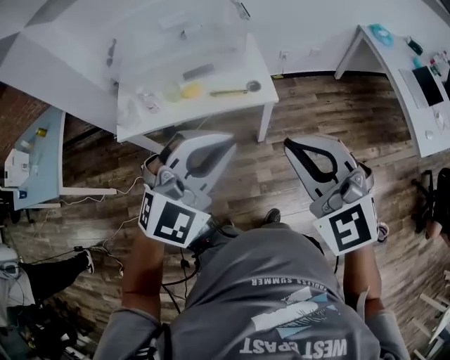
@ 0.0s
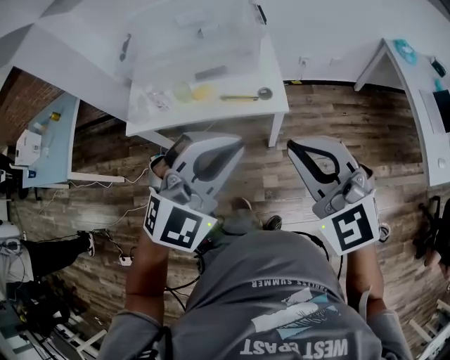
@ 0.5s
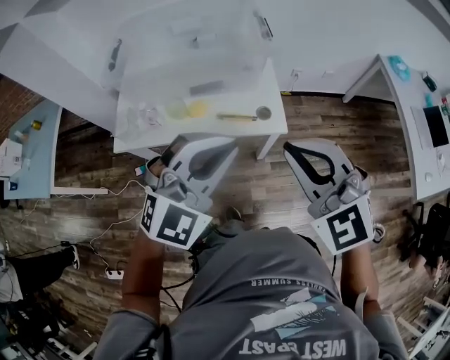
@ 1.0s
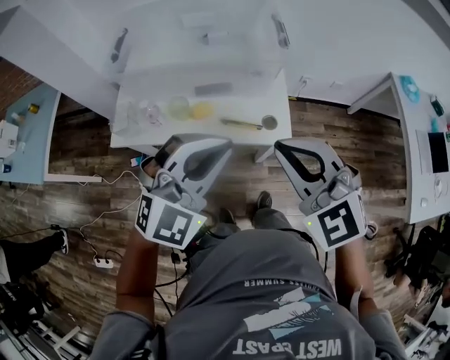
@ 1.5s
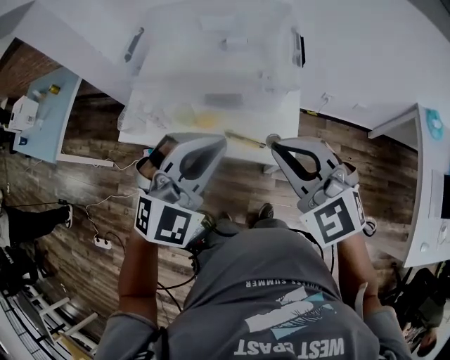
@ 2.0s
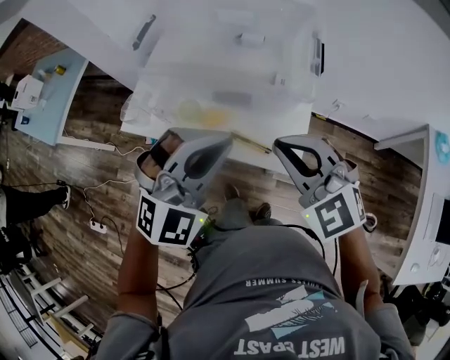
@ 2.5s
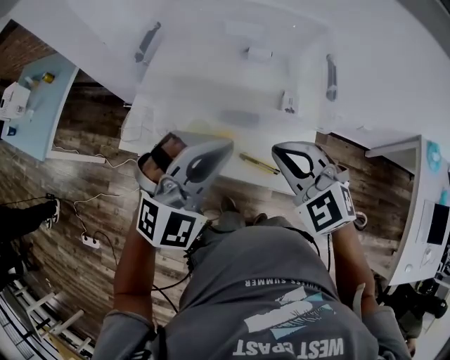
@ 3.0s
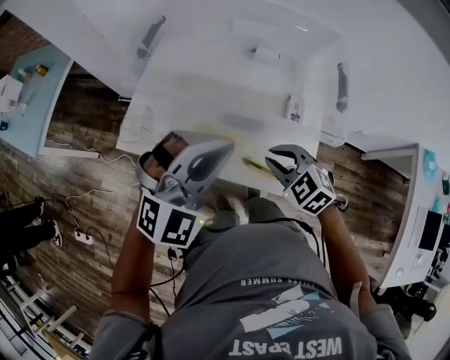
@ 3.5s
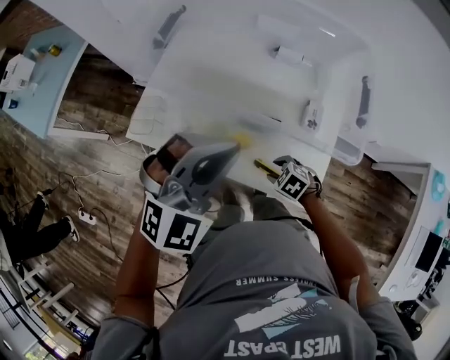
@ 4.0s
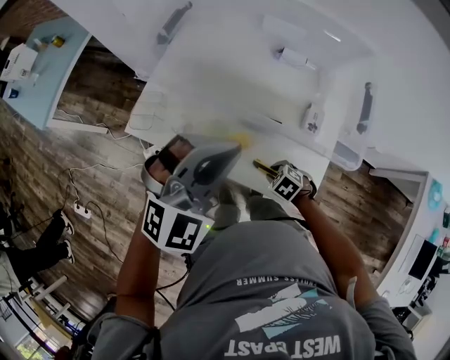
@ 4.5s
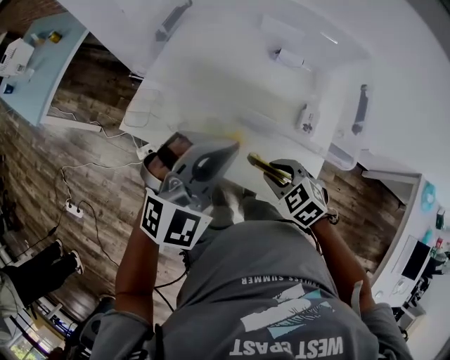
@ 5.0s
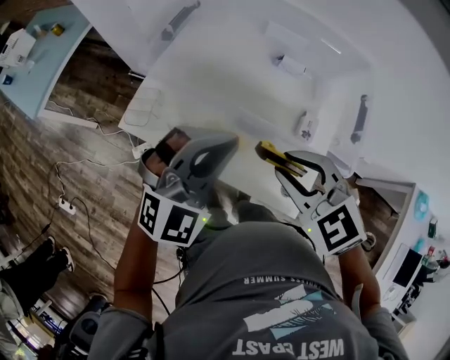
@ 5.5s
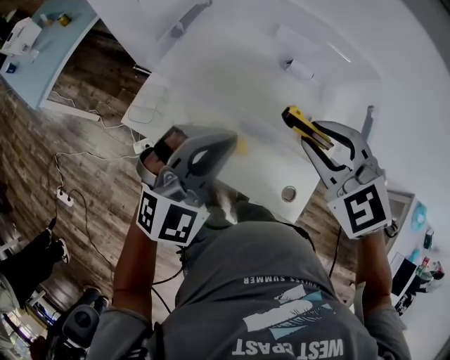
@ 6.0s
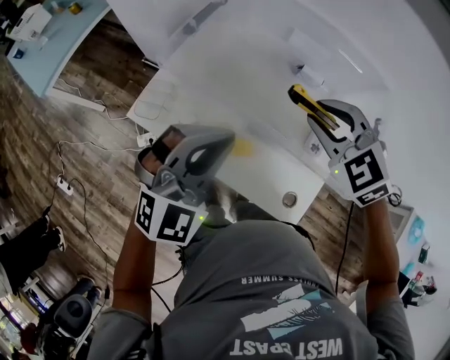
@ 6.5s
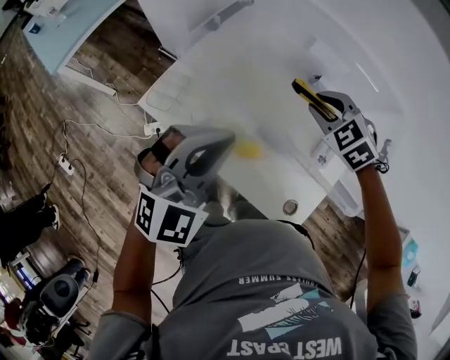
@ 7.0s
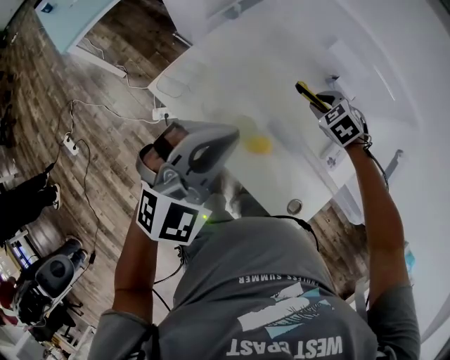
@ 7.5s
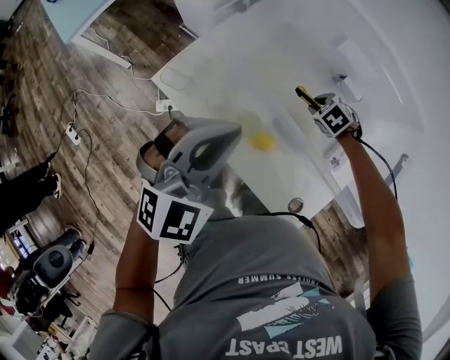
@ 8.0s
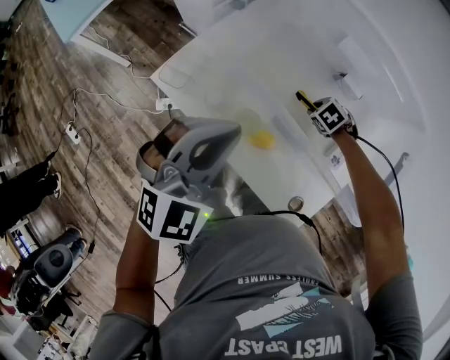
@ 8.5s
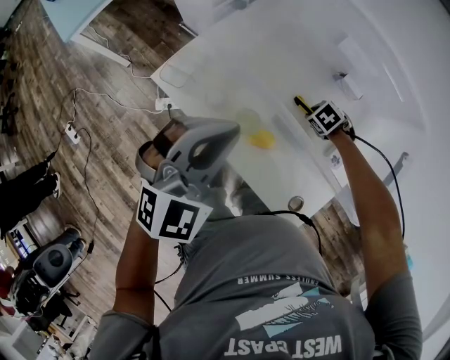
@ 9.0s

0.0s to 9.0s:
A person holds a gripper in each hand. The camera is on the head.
0.0s to 2.0s: The two grippers go approximately 25 cm forward. The right gripper changes its angle by roughly 20 degrees; the left gripper rotates about 30 degrees.
2.0s to 4.5s: The right gripper travels downward by about 40 cm, angles its fingers downward, by about 50 degrees, and opens up. Meanwhile the left gripper changes place by roughly 20 cm.
4.5s to 7.0s: The right gripper is displaced upward by approximately 25 cm, and rotates about 40 degrees. Meanwhile the left gripper shifts by about 10 cm.
7.0s to 9.0s: The right gripper heads downward, covering approximately 25 cm, and points its fingers roughly 30 degrees further downward.

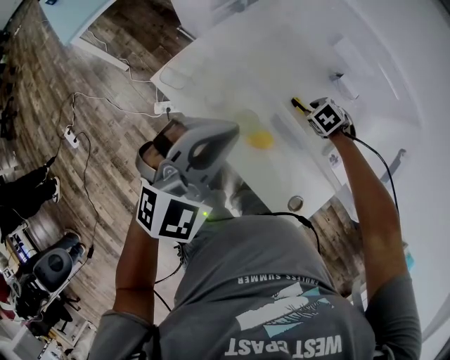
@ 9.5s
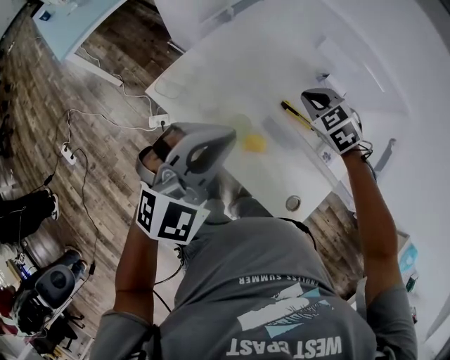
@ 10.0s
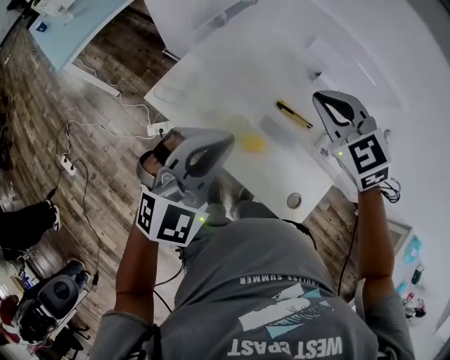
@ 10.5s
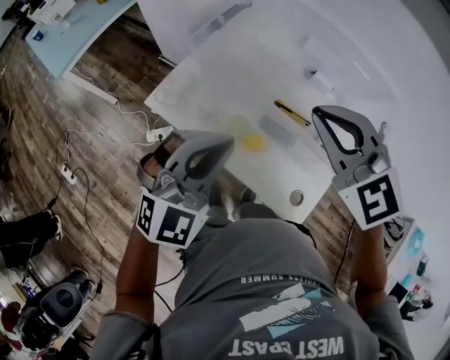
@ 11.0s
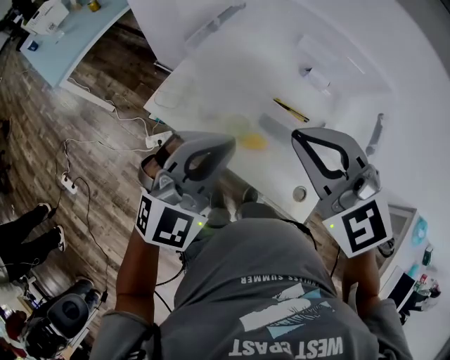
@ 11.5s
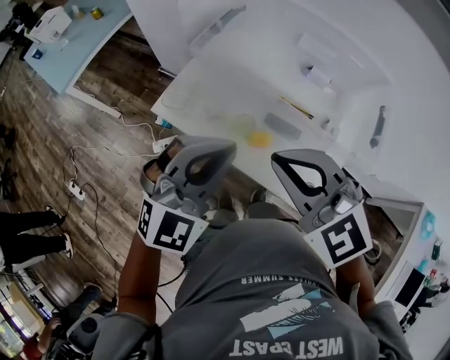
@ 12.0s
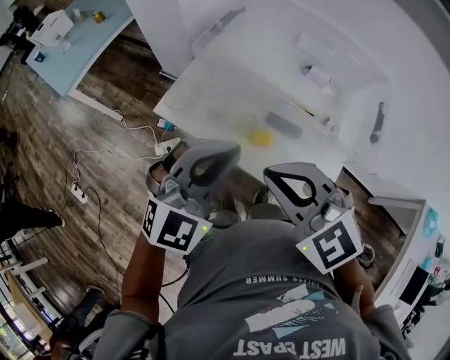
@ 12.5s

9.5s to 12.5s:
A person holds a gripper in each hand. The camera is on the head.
9.5s to 11.0s: The right gripper moves upward, some 40 cm, tips its fingers upward by approximately 50 degrees, and closes up; the left gripper moves roughly 5 cm.
11.0s to 12.5s: The right gripper moves backward and to the left, approximately 20 cm, while the left gripper is displaced backward by roughly 5 cm.

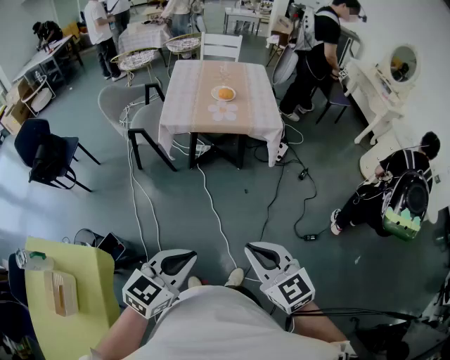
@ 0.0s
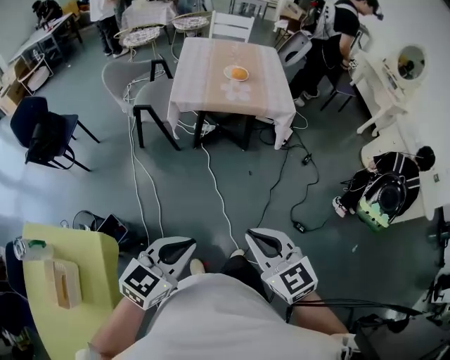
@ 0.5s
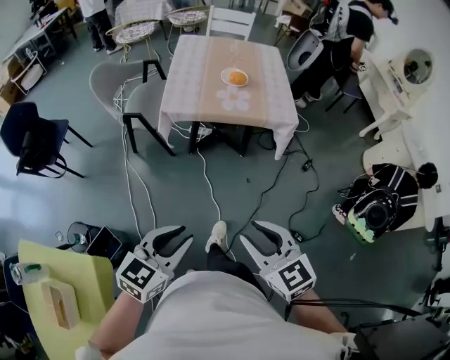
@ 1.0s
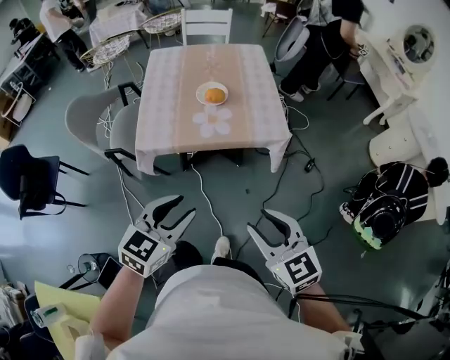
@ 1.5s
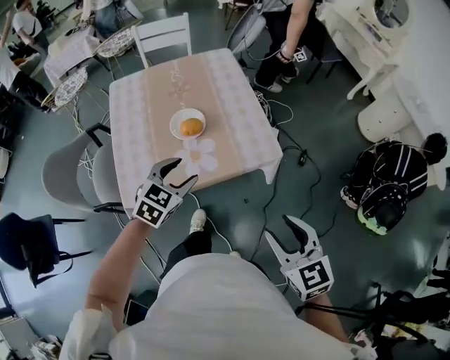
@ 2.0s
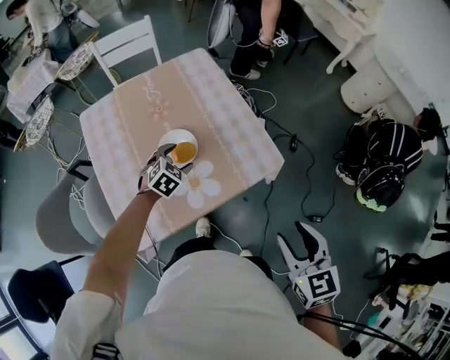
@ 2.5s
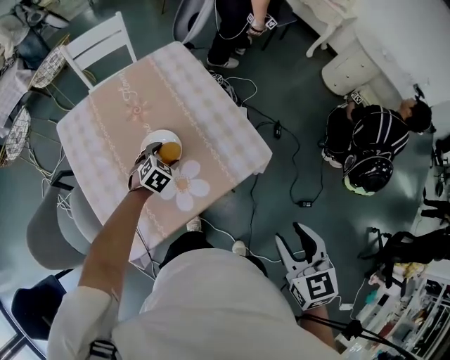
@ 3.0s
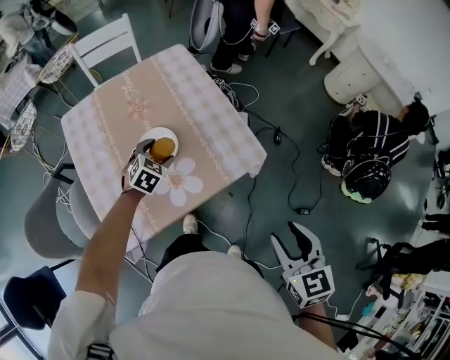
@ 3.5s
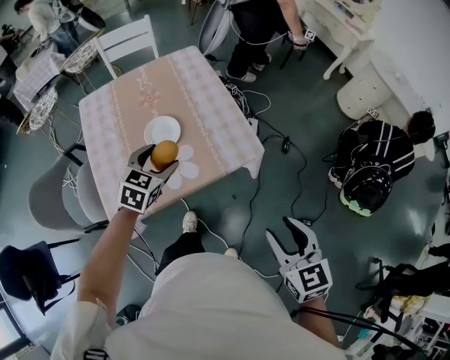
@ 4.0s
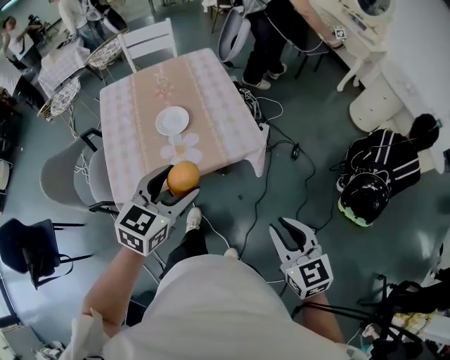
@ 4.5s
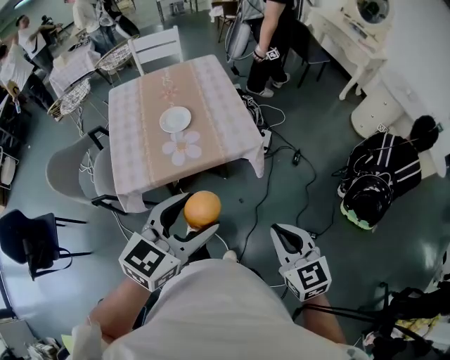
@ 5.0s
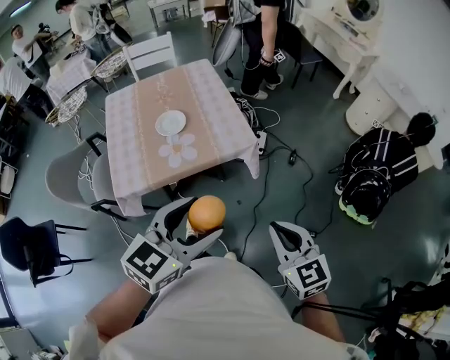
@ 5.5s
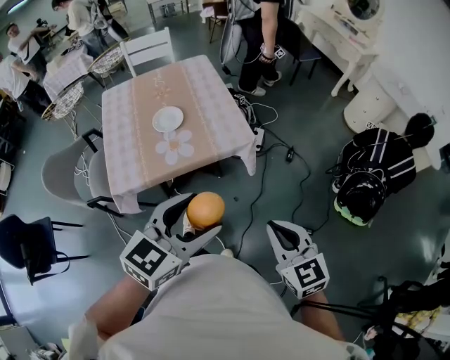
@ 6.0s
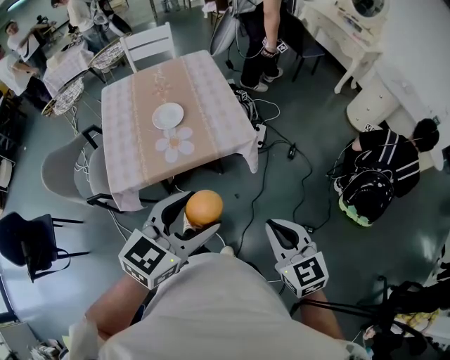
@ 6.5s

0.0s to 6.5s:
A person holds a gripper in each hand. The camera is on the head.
0.0s to 2.0s: Both grippers are carried forward, some 60 cm. The left gripper rotates some 30 degrees, and opens up. The right gripper rotates about 30 degrees, and opens up.
2.0s to 4.5s: The right gripper goes roughly 10 cm to the right, reaches about 10 cm forward, then returns, and closes its fingers, while the left gripper moves upward and to the right, some 15 cm, and travels forward and back again, about 20 cm each way.
4.5s to 6.5s: The left gripper goes some 15 cm backward and to the right; the right gripper moves roughly 5 cm, and closes up.

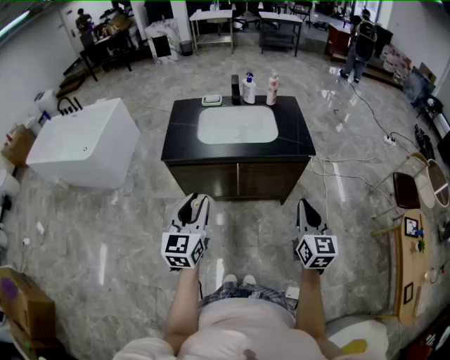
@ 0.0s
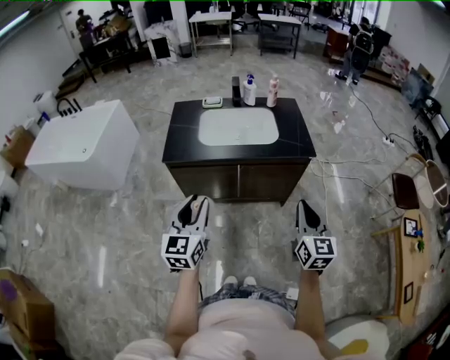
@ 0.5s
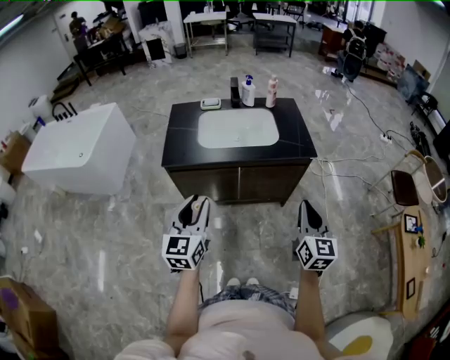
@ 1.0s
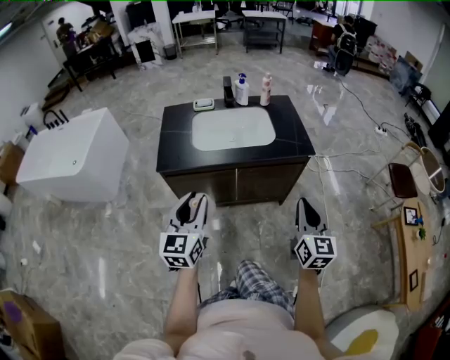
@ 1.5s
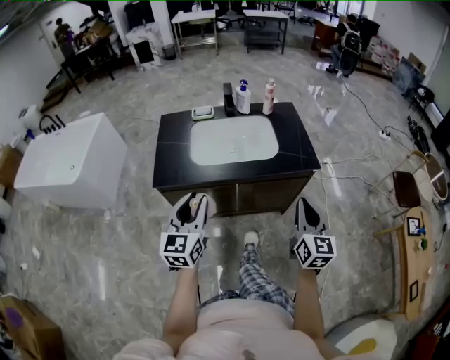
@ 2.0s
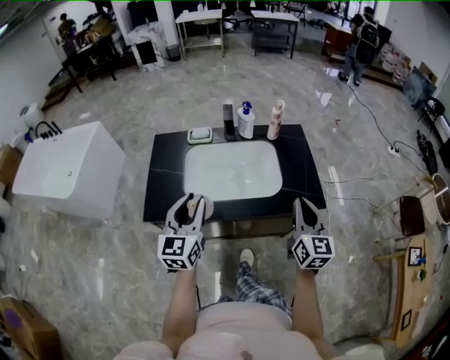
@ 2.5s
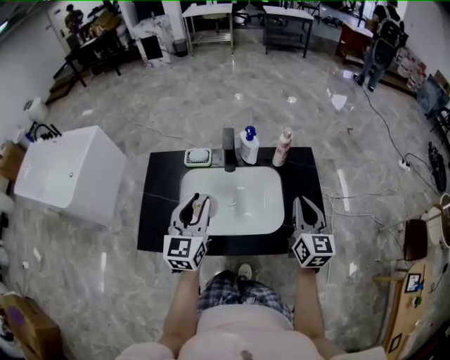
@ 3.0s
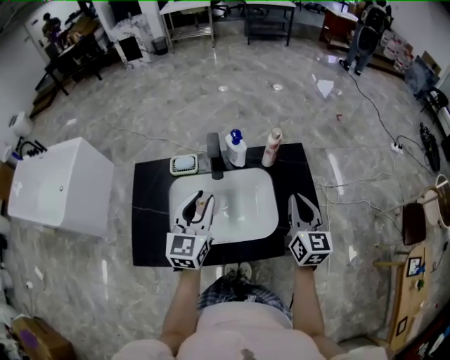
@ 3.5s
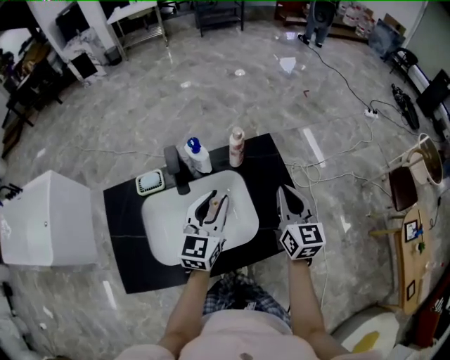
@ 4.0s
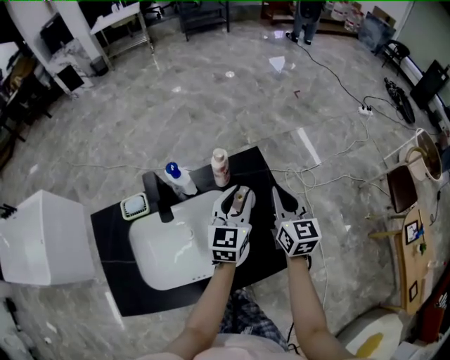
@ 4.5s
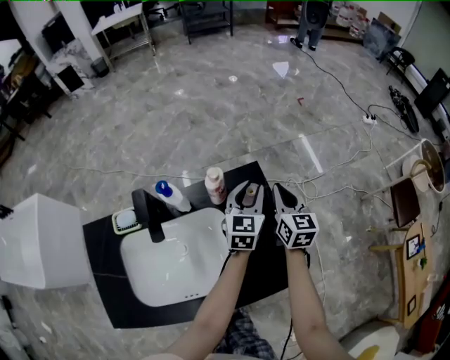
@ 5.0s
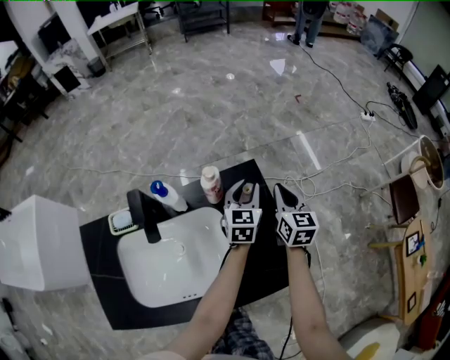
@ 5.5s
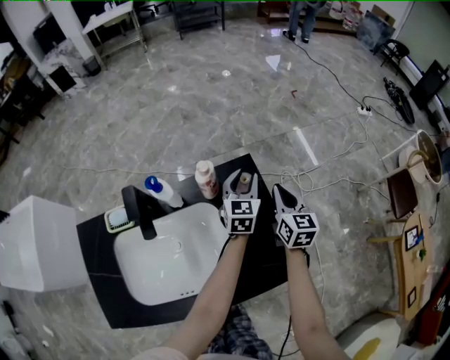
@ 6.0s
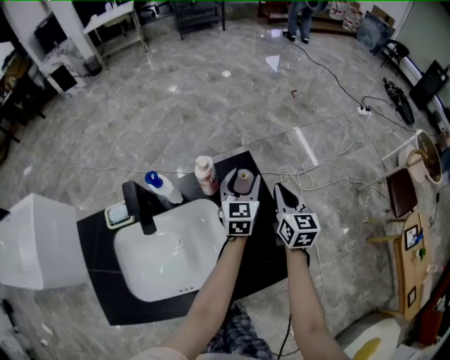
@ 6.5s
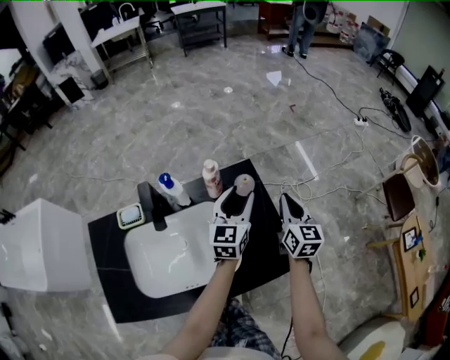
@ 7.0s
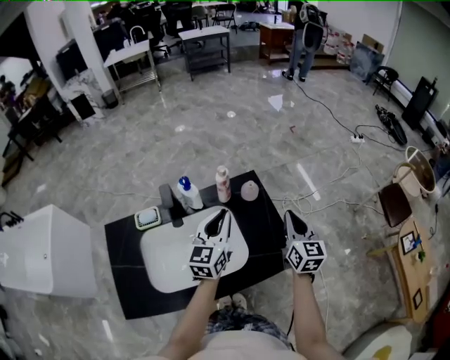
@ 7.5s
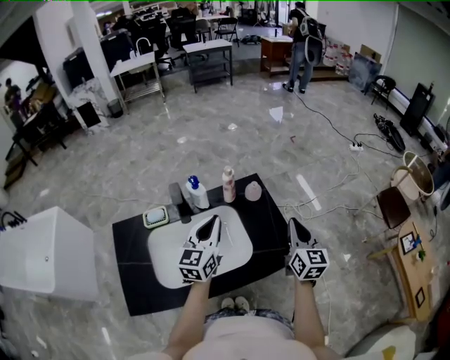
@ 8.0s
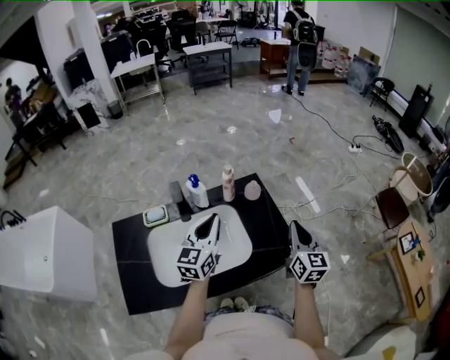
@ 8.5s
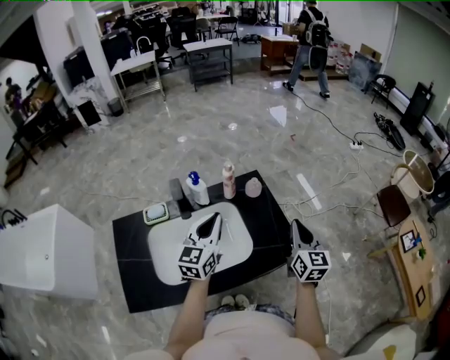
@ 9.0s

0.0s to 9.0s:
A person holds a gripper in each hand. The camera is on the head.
0.0s to 2.0s: The grippers both shift forward by roughly 15 cm.
2.0s to 4.5s: The two grippers travel together, forward, some 60 cm. The left gripper rotates roughly 20 degrees.
4.5s to 7.0s: The left gripper travels forward and back again, about 15 cm each way. The right gripper is displaced to the right by about 5 cm, and moves approximately 10 cm forward and comes back.
7.0s to 9.0s: The right gripper goes some 20 cm backward and upward; the left gripper is displaced backward, to the left and upward by approximately 25 cm, and closes its fingers.
